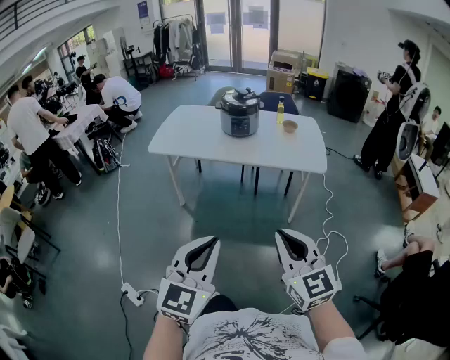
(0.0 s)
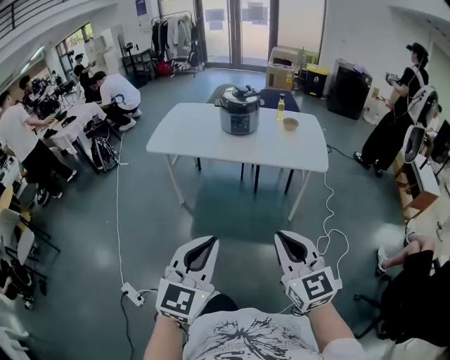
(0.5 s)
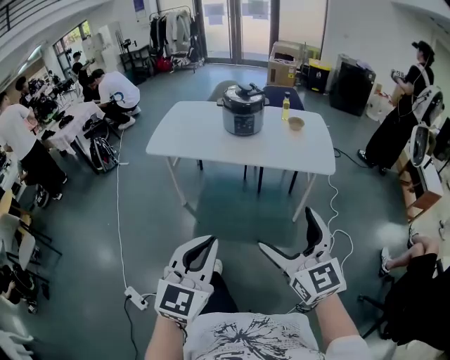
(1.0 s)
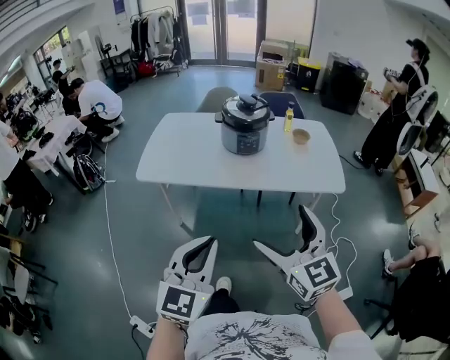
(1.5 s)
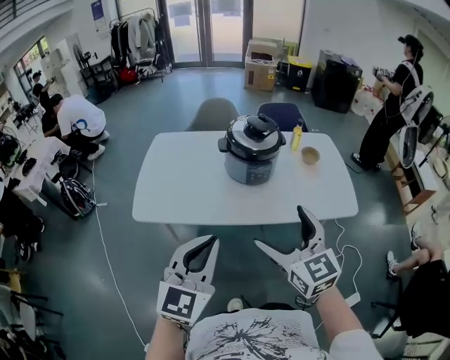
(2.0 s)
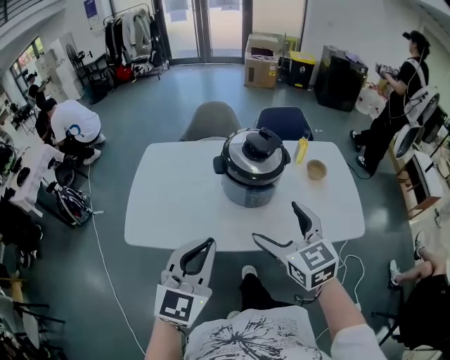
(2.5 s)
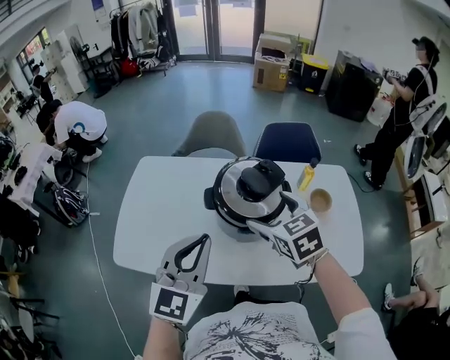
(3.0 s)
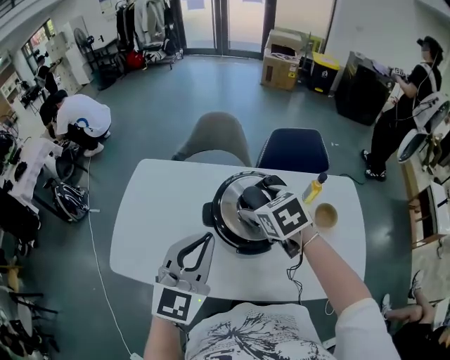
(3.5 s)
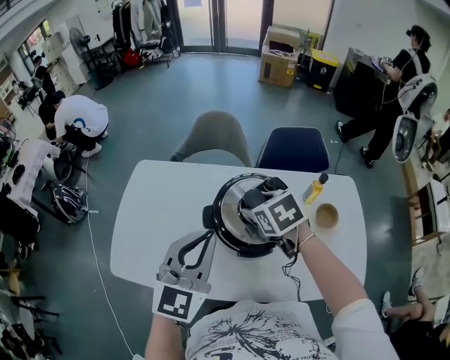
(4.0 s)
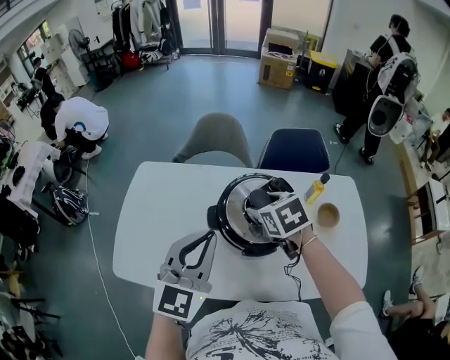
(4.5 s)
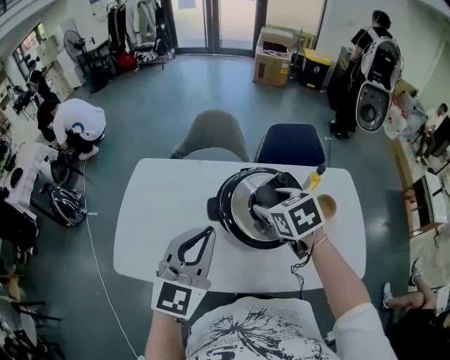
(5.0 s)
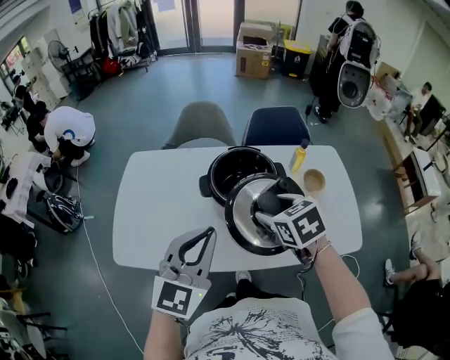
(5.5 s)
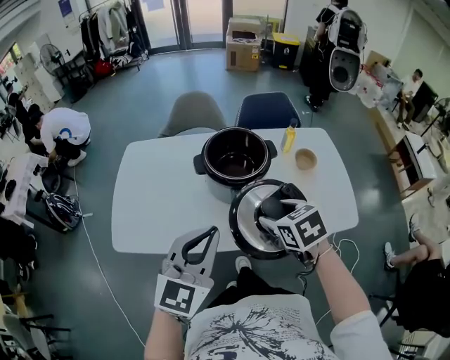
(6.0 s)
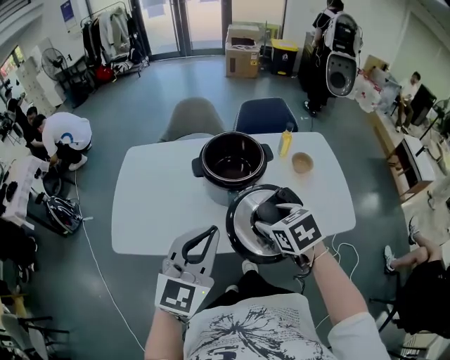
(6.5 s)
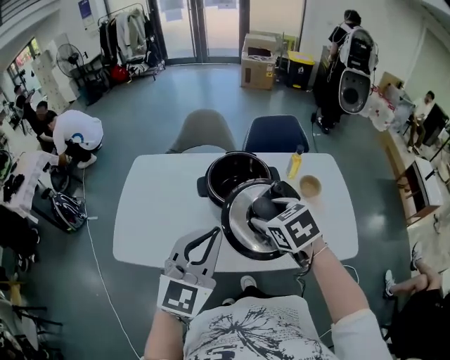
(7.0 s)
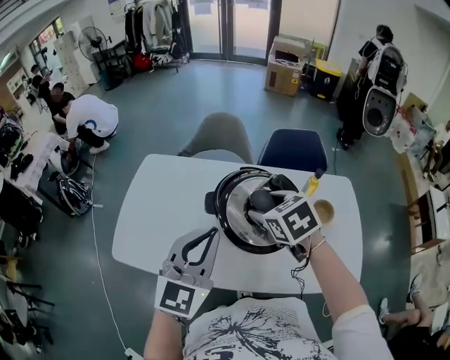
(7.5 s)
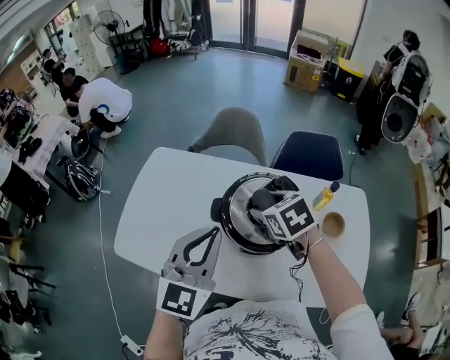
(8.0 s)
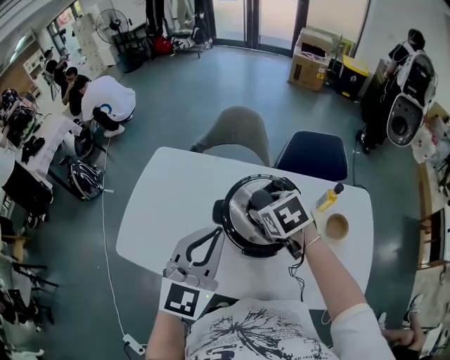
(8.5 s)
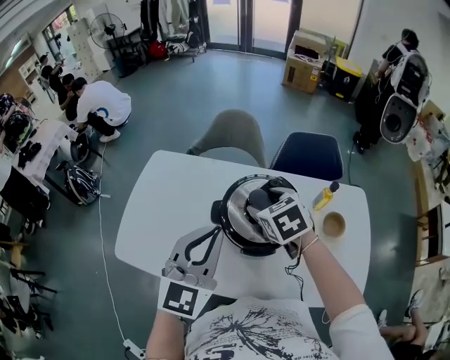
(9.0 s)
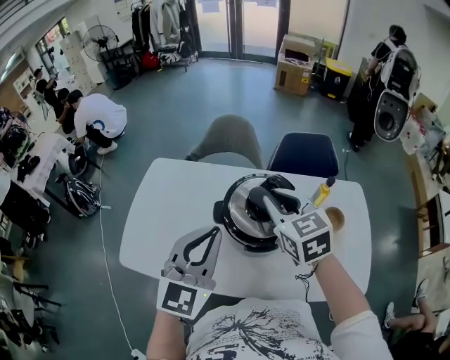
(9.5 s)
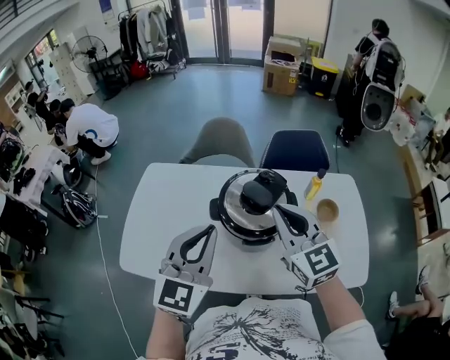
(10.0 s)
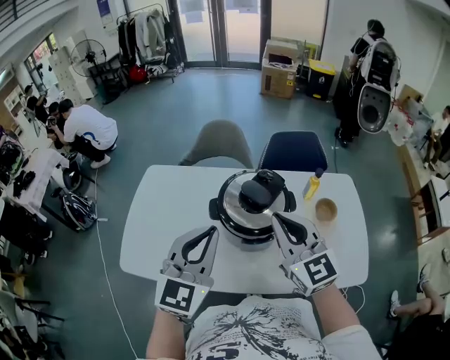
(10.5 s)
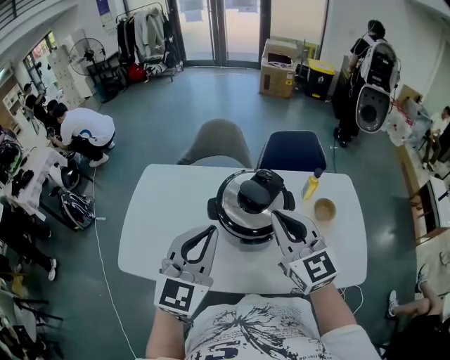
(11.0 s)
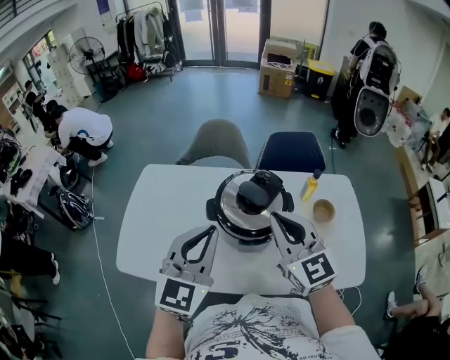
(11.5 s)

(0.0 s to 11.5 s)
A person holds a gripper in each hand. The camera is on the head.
0.0 s - 2.0 s: The pair of grippers is taken forward, about 70 cm. The right gripper opens up.
2.0 s - 4.0 s: The pair of grippers is taken forward, about 60 cm. The right gripper tilts its fingers some 40 degrees downward, and closes.
4.0 s - 6.0 s: The two grippers go approximately 30 cm backward.
6.0 s - 7.5 s: The two grippers go about 20 cm forward.
7.5 s - 9.5 s: The left gripper travels forward by approximately 5 cm. The right gripper moves forward and upward, approximately 10 cm, changes its angle by approximately 20 degrees, and closes.
9.5 s - 11.5 s: The right gripper shifts some 10 cm backward, and turns by roughly 20 degrees.

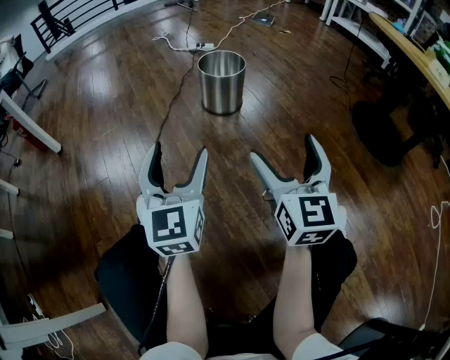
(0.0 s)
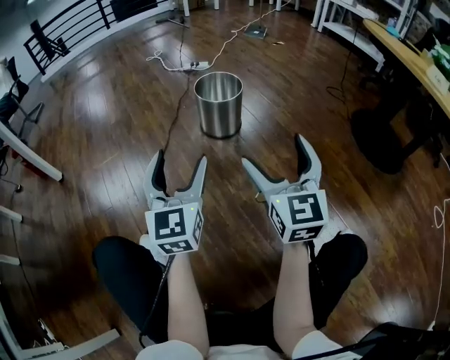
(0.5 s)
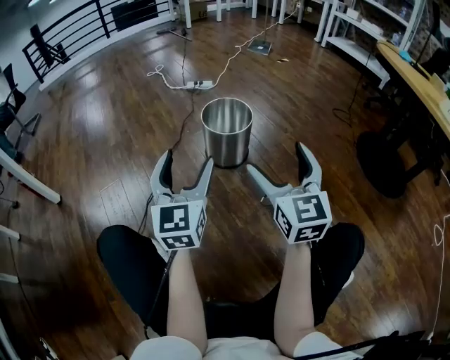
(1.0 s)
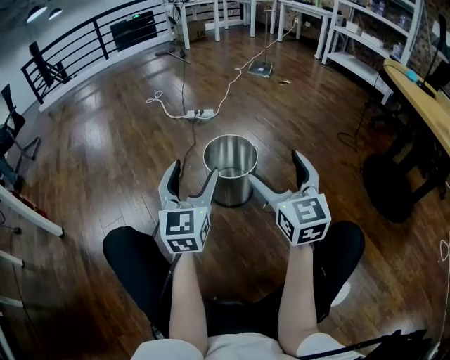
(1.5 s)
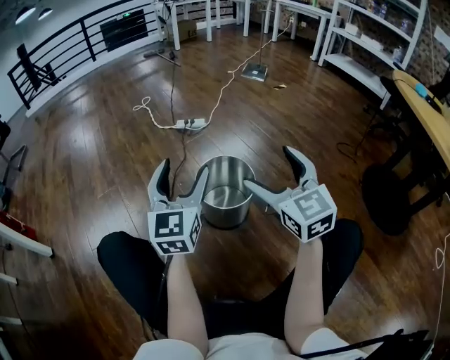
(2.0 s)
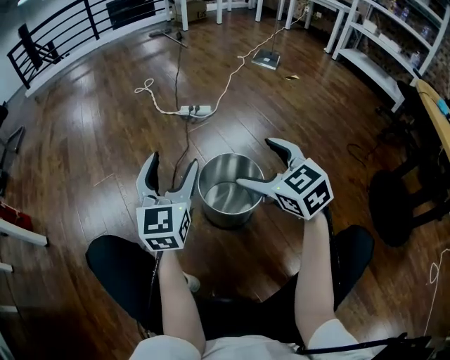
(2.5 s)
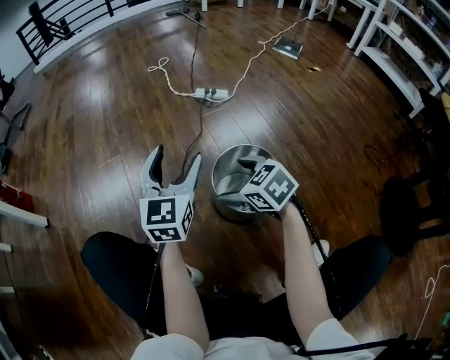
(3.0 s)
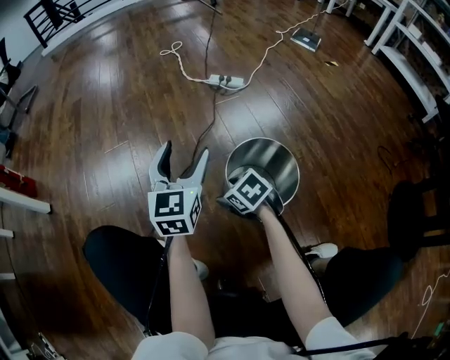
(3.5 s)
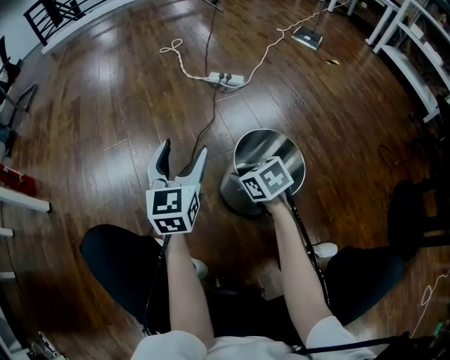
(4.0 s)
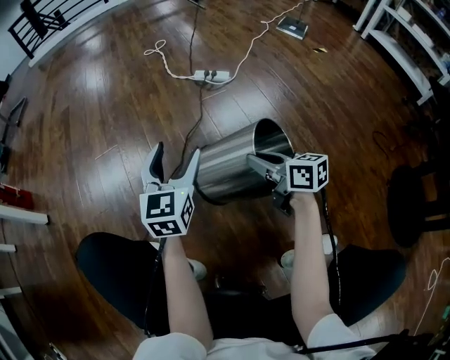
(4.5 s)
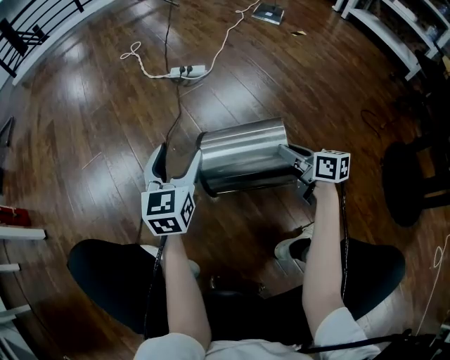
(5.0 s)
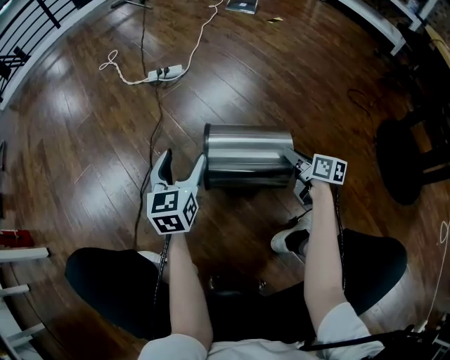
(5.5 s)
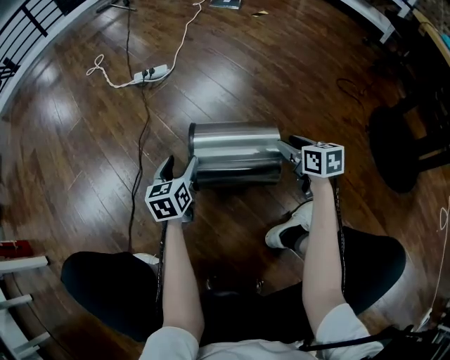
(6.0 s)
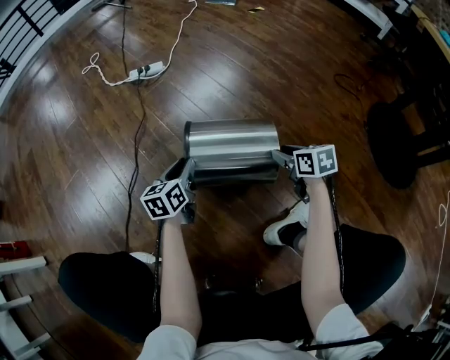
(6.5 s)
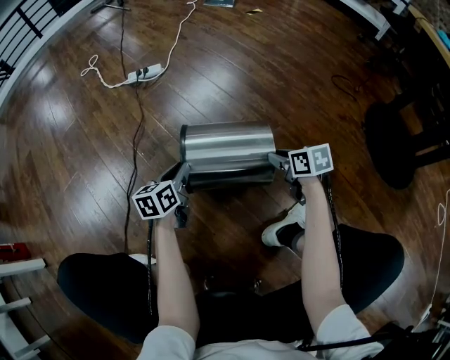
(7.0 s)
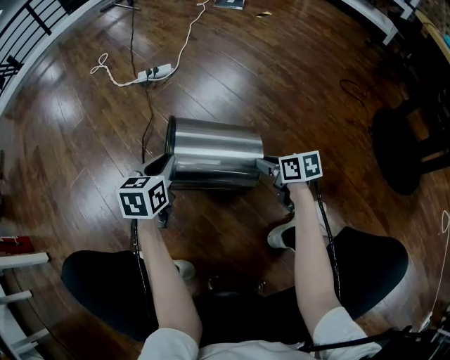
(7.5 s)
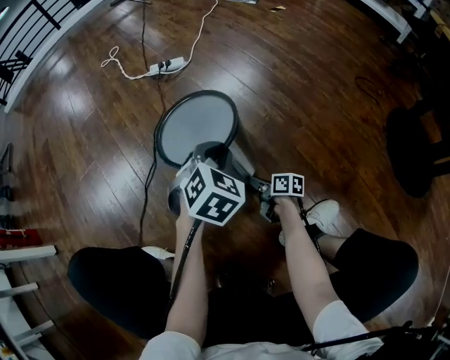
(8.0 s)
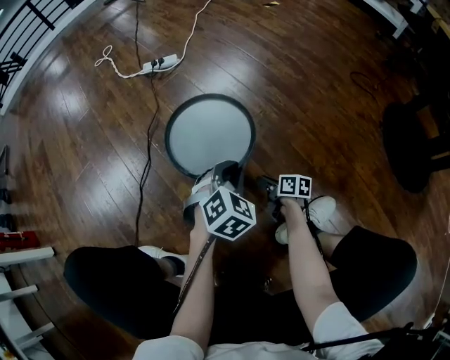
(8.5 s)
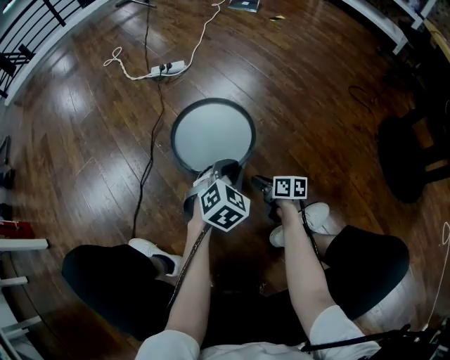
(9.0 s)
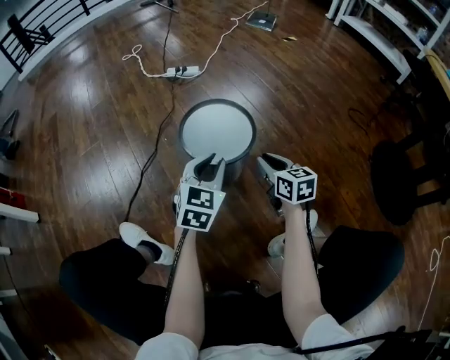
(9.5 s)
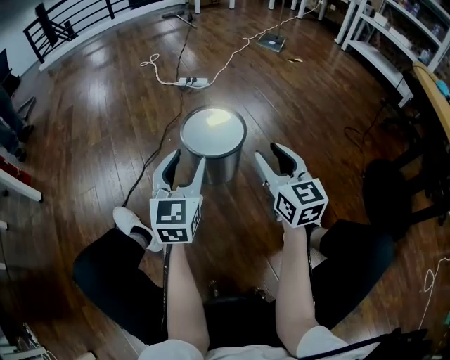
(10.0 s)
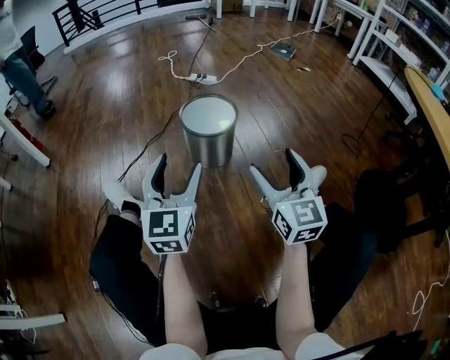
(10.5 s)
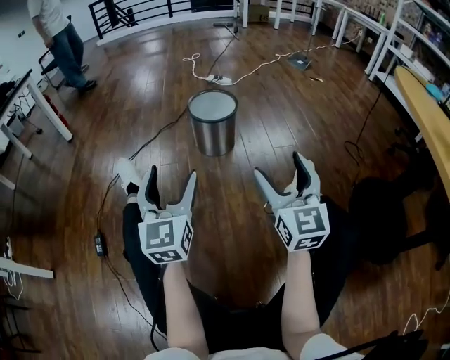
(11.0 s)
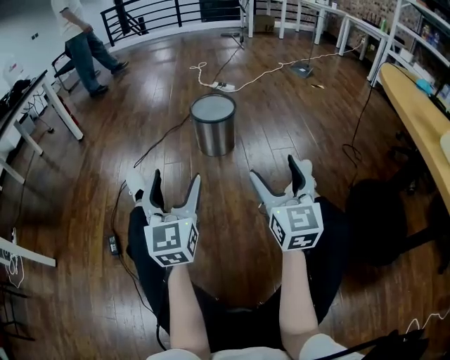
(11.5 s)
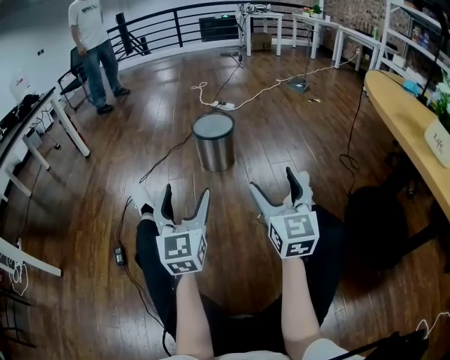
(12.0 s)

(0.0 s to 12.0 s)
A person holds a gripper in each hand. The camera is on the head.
0.0 s - 2.0 s: The pair of grippers is taken forward, some 50 cm.
2.0 s - 4.0 s: The left gripper ends up approximately 20 cm from where it was. The right gripper goes some 30 cm downward, tips its fingers downward by some 40 degrees, and closes its fingers.
4.0 s - 6.0 s: The left gripper moves downward, roughly 20 cm, and rotates approximately 30 degrees; the right gripper goes up and down, roughly 15 cm each way, reversing 2 times, and swivels roughly 50 degrees.
6.0 s - 8.0 s: The right gripper shifts roughly 25 cm downward and to the left, and rotates some 40 degrees. The left gripper is displaced to the right and upward by approximately 10 cm, rolls clockwise, seen from behind, by roughly 50 degrees, and closes.
8.0 s - 10.0 s: The left gripper is displaced upward, backward and to the left by approximately 20 cm, angles its fingers upward, by approximately 40 degrees, and opens. The right gripper is displaced upward by some 40 cm, and rotates around the line of its fingers by about 60 degrees, counterclockwise from behind.
10.0 s - 12.0 s: The grippers both shift backward by roughly 40 cm. The right gripper opens up. The left gripper turns by roughly 30 degrees, and opens its fingers.

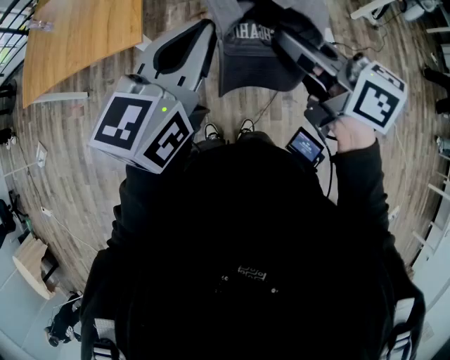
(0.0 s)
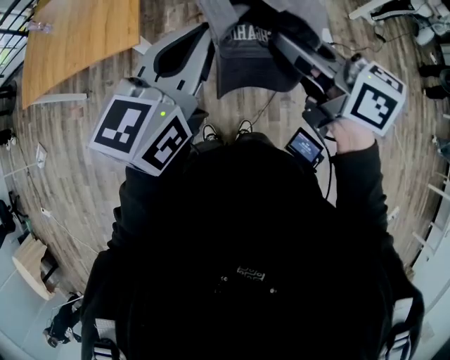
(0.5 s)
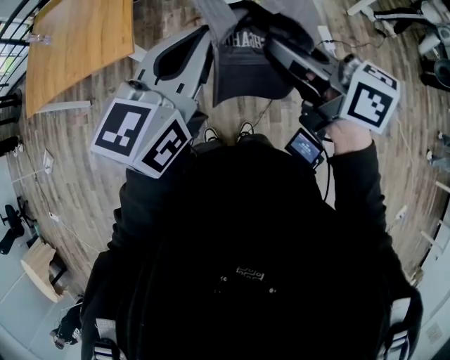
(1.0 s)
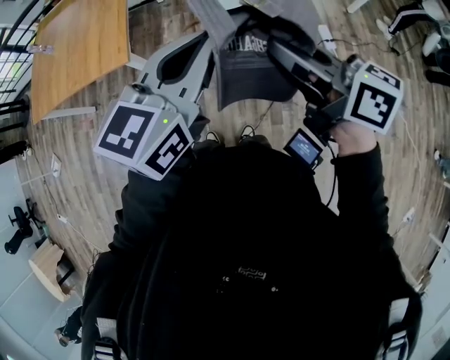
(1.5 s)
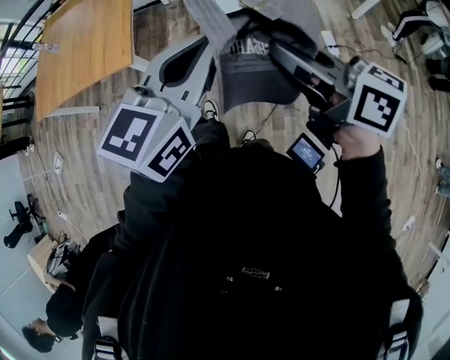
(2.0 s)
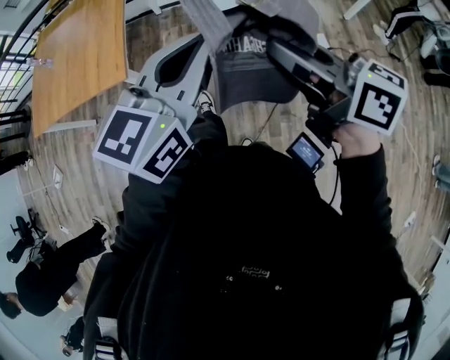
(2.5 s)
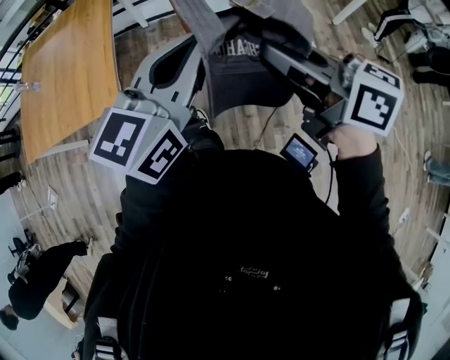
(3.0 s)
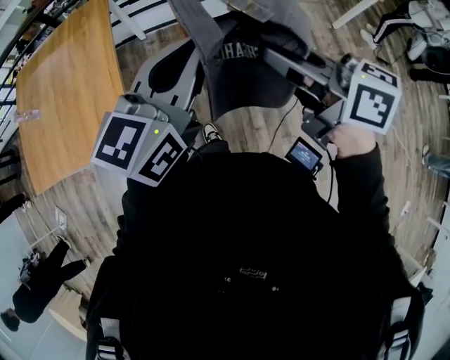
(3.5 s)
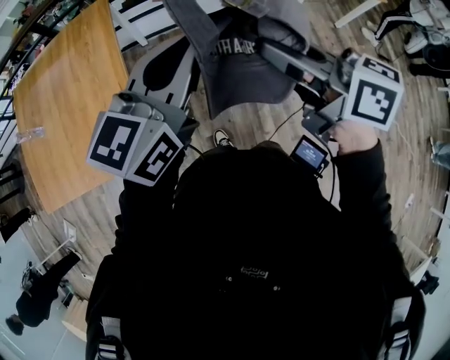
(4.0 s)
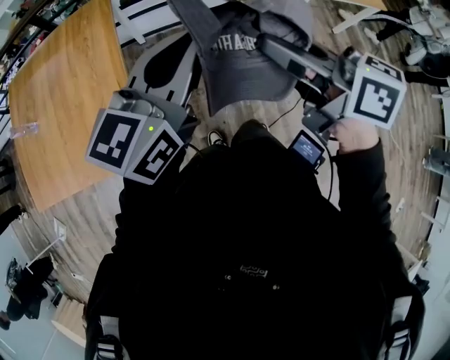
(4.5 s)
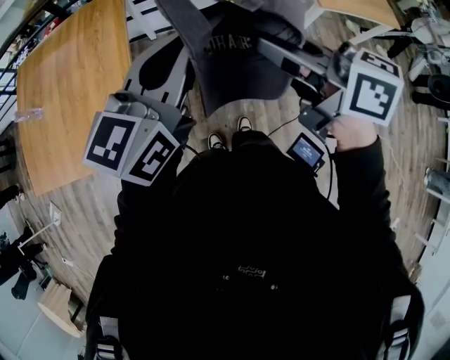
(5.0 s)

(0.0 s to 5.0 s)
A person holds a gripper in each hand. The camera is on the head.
0.0 s - 5.0 s: The grippers make only small movements.
